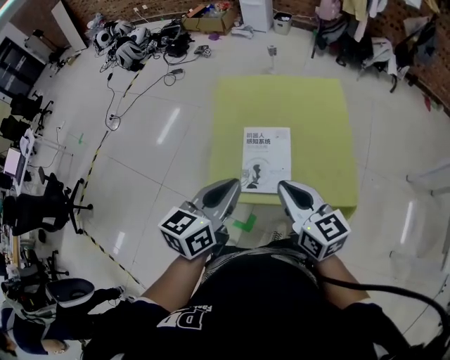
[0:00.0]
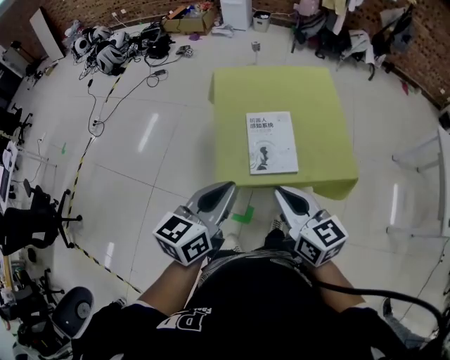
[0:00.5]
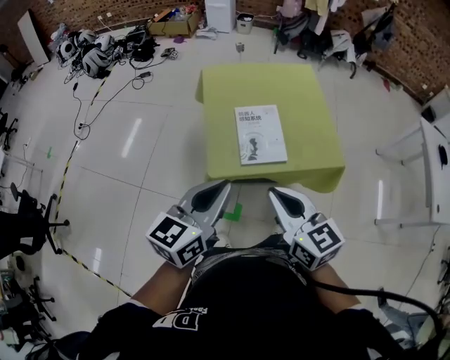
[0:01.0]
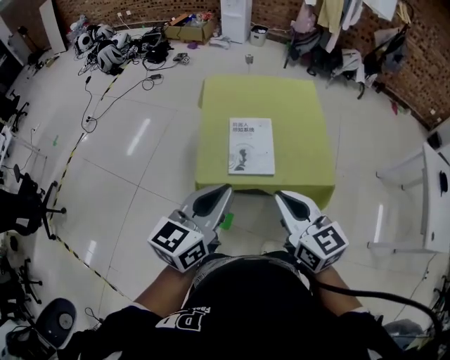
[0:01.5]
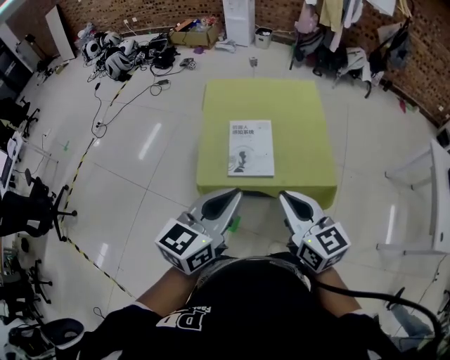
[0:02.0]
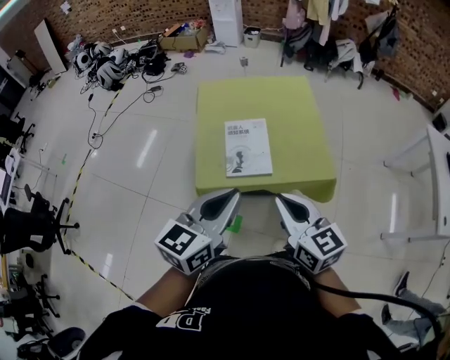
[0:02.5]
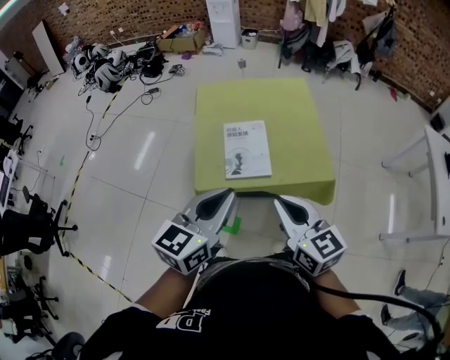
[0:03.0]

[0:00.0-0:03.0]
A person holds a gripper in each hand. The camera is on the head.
0:00.0 to 0:01.5: The right gripper heads backward, covering roughly 15 cm, while the left gripper moves backward and upward, about 15 cm.
0:01.5 to 0:03.0: The grippers move only a little.

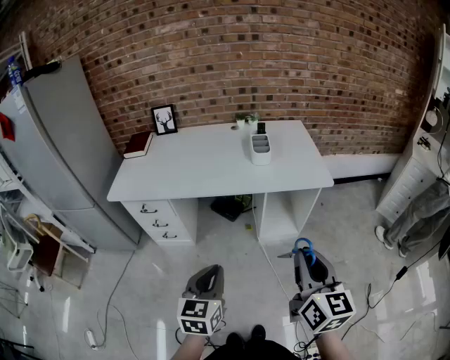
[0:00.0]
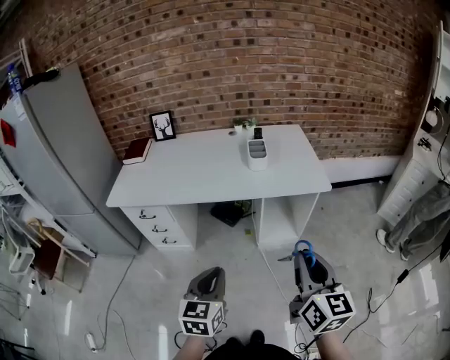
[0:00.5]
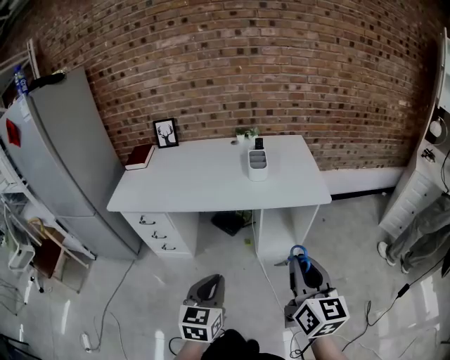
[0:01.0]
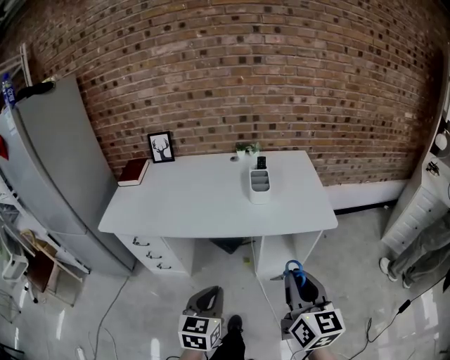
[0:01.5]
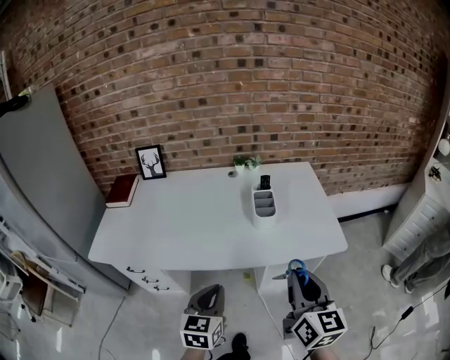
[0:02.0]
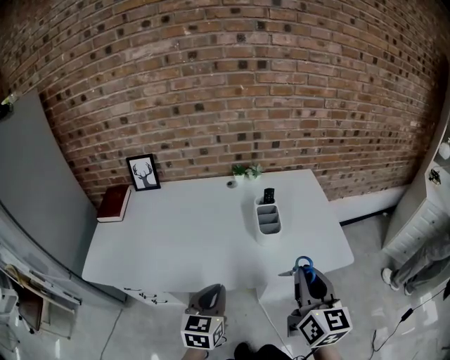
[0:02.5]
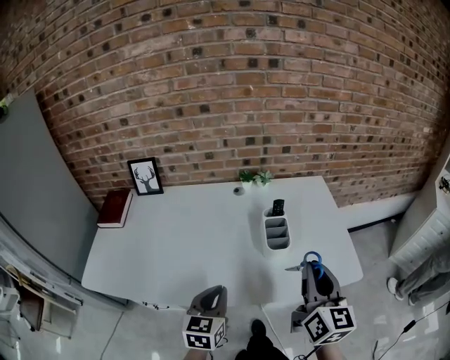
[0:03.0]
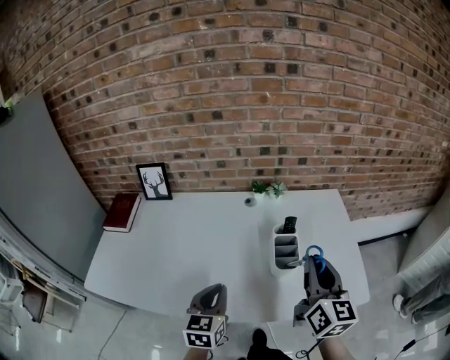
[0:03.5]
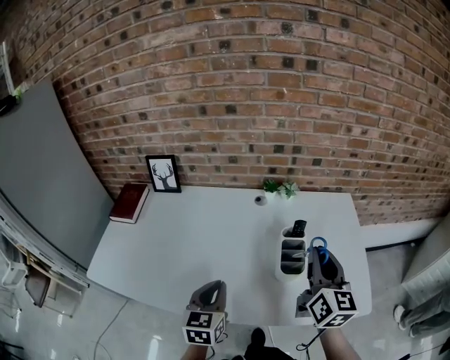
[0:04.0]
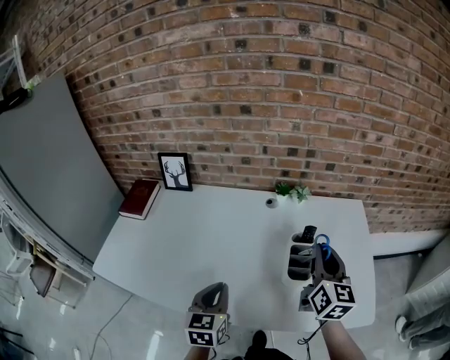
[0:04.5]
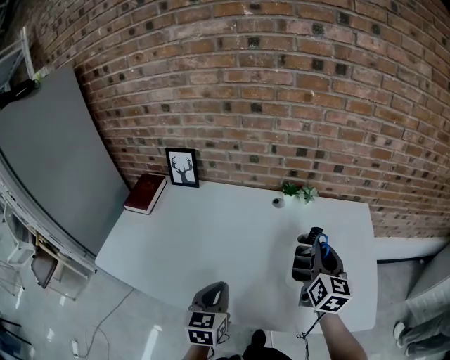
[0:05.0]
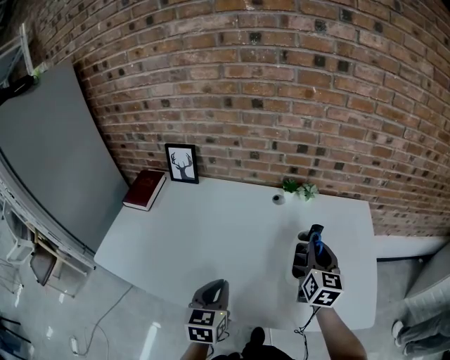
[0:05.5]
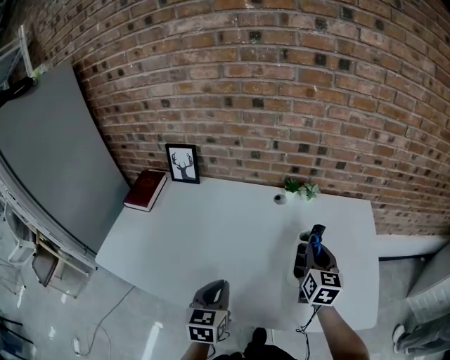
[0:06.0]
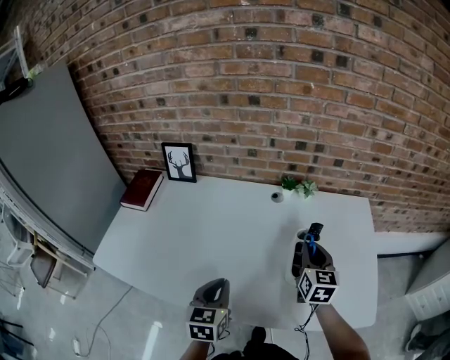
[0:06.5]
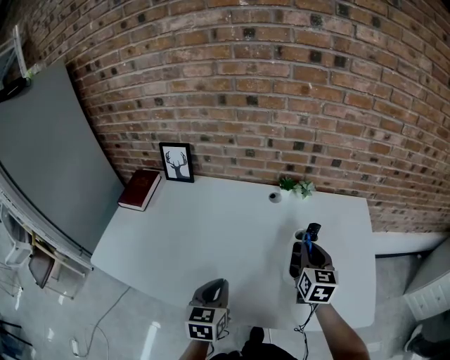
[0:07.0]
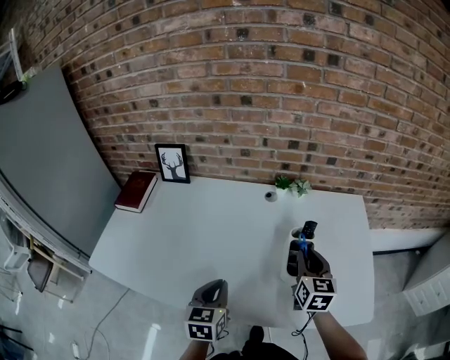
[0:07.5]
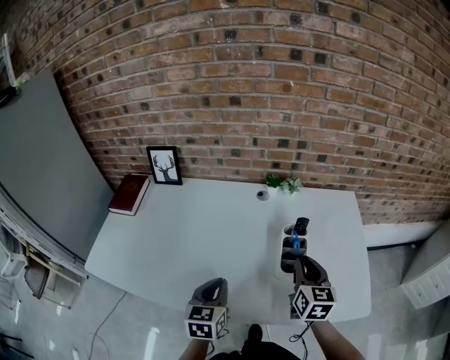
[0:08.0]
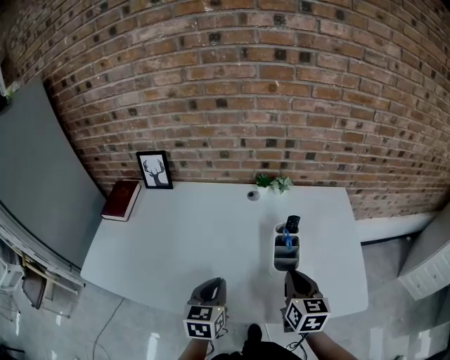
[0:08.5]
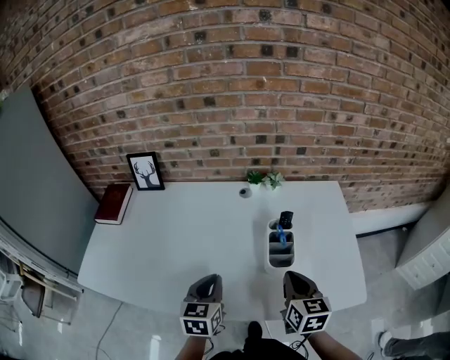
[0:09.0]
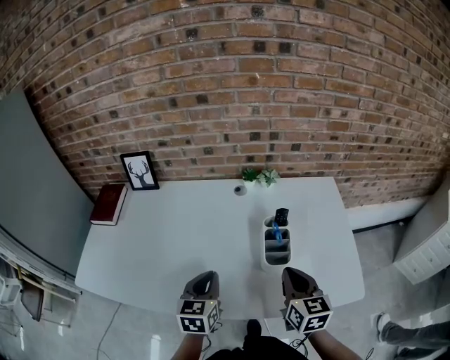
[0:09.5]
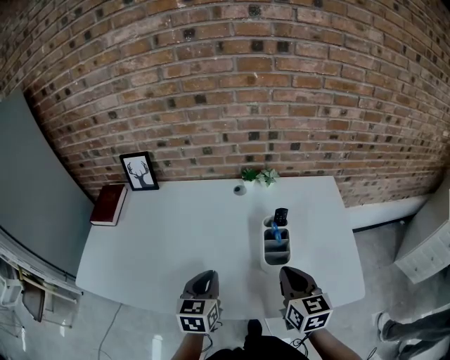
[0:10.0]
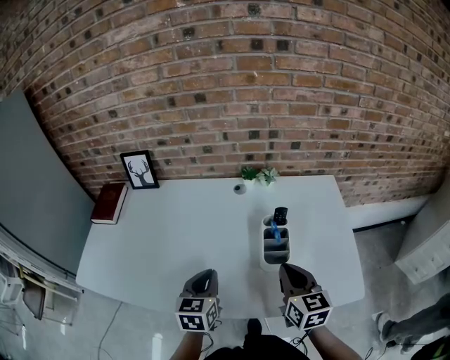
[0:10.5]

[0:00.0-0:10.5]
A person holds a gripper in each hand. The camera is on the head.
0:00.0 to 0:02.0: Both grippers travel together forward, about 25 cm.
0:02.0 to 0:04.0: The grippers both shift forward by approximately 30 cm.
0:04.0 to 0:06.5: The right gripper moves downward and forward, roughly 15 cm.
0:06.5 to 0:08.5: The right gripper travels backward by roughly 10 cm.
0:08.5 to 0:10.5: The grippers make only small movements.

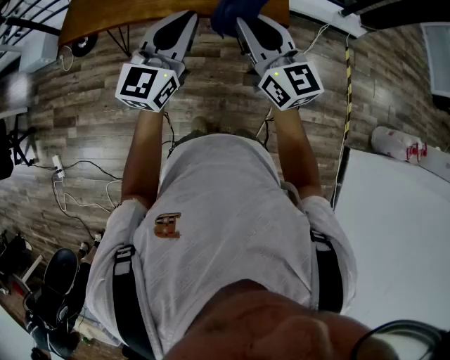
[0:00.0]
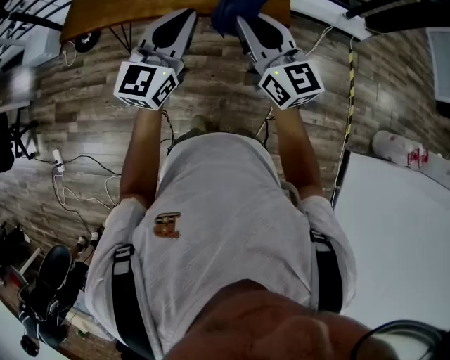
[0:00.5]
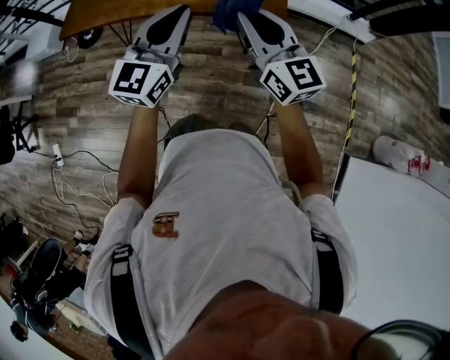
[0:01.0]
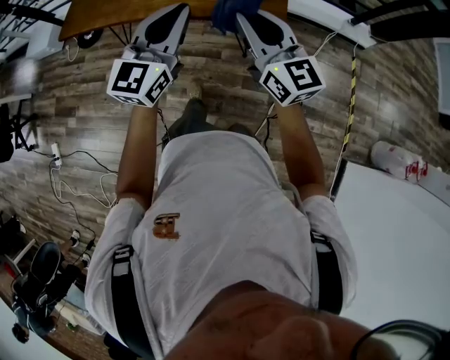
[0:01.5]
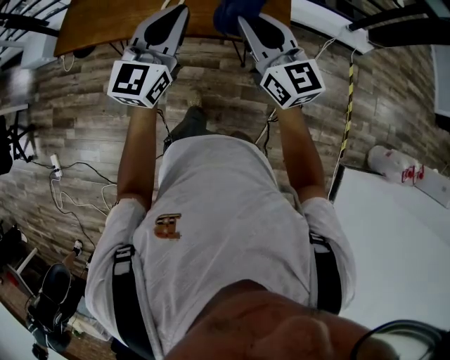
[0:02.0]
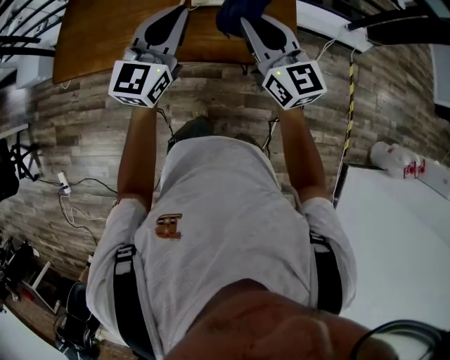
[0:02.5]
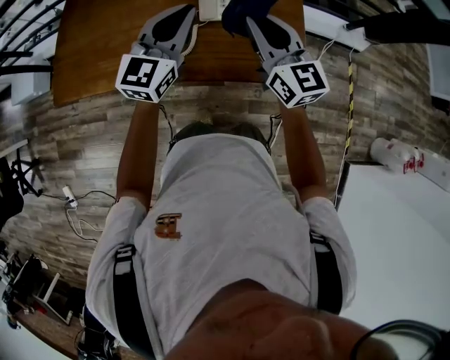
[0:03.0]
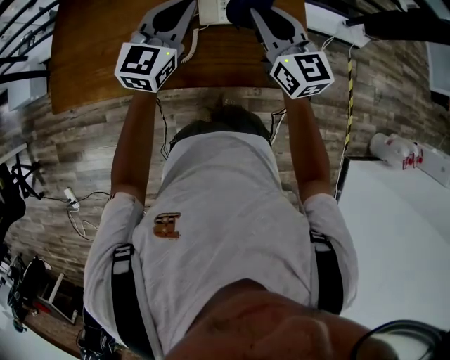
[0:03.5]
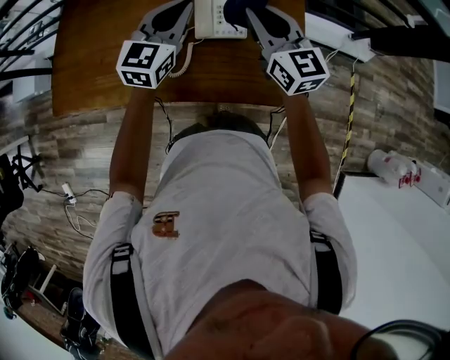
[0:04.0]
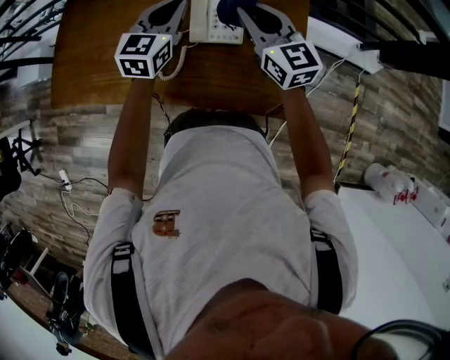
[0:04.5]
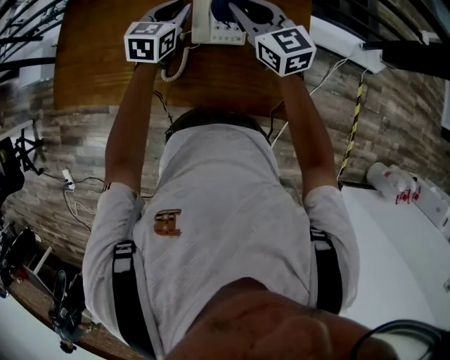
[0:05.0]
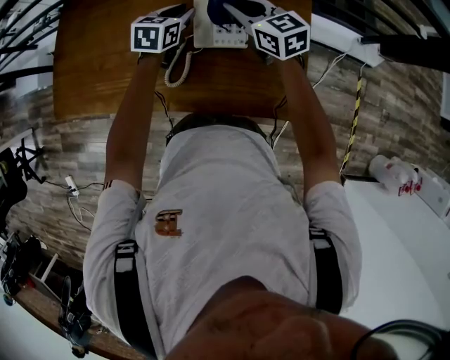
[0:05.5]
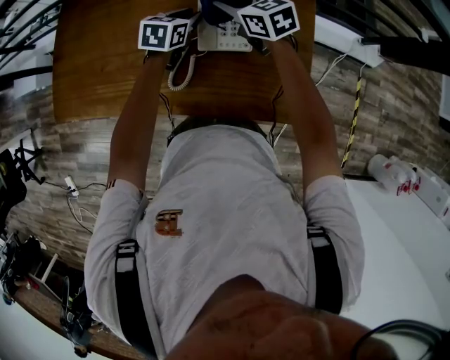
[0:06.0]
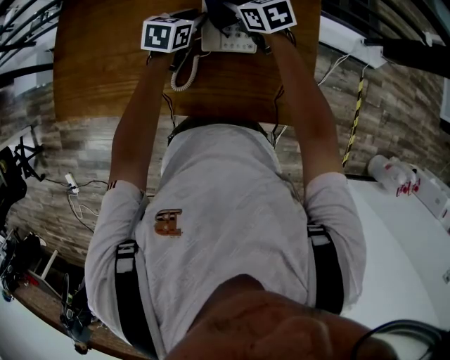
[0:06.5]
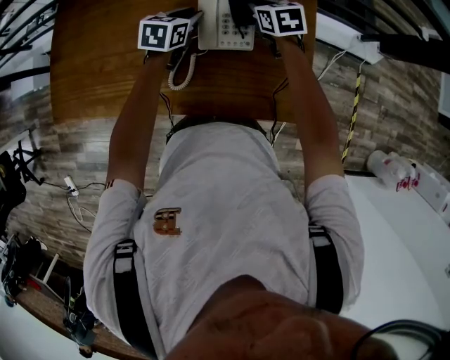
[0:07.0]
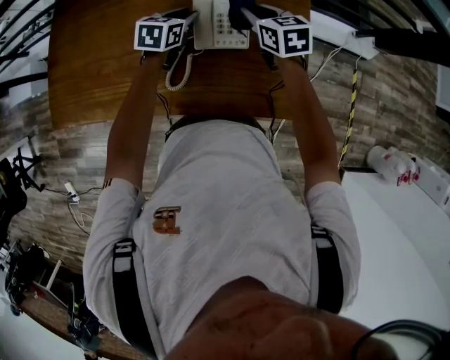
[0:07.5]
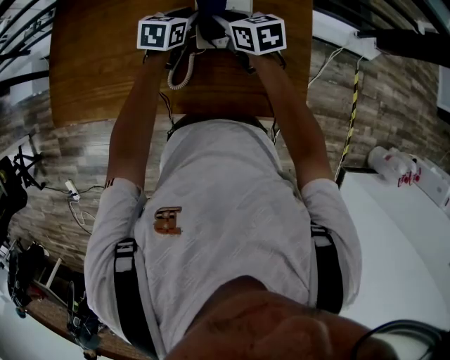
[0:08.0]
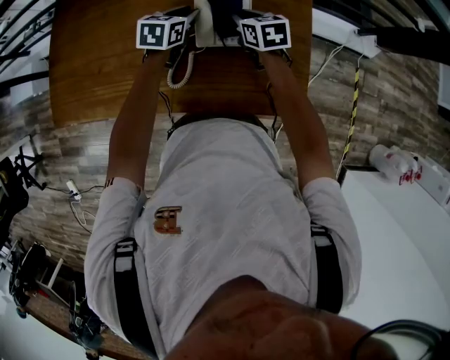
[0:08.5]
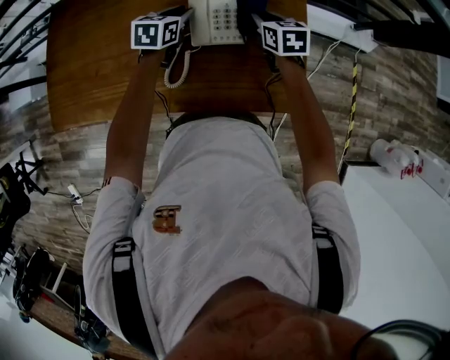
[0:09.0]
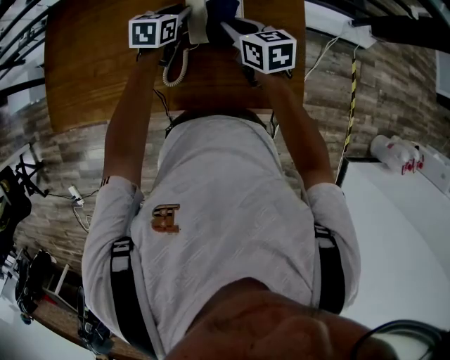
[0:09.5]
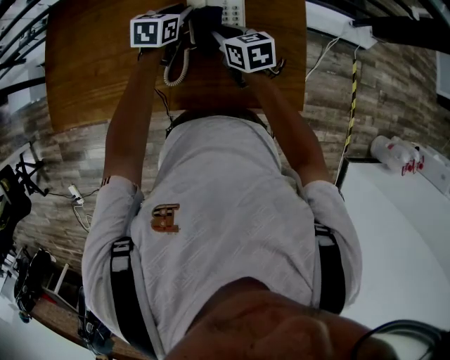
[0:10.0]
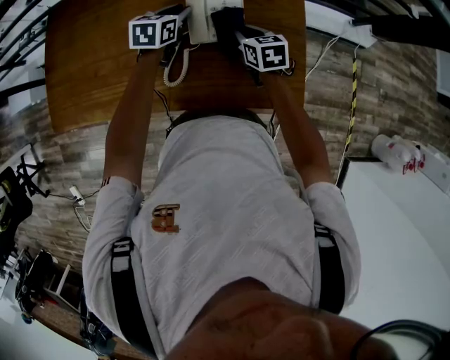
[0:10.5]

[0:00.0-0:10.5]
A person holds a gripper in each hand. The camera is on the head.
0:00.0 to 0:02.0: The two grippers go about 15 cm forward.
0:02.0 to 0:04.0: The grippers both shift forward by some 35 cm.
0:04.0 to 0:06.5: The right gripper goes about 25 cm forward and downward, and angles its fingers downward, by some 30 degrees; the left gripper shifts about 20 cm downward and forward, and tilts its fingers approximately 30 degrees downward.
0:06.5 to 0:08.5: The right gripper goes left and right, roughly 10 cm each way, reversing 2 times.
0:08.5 to 0:10.5: The right gripper swings left and right, roughly 10 cm each way, with 2 reversals.

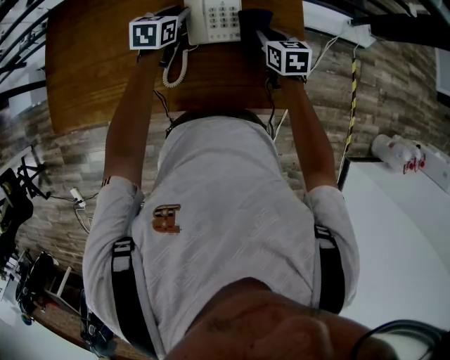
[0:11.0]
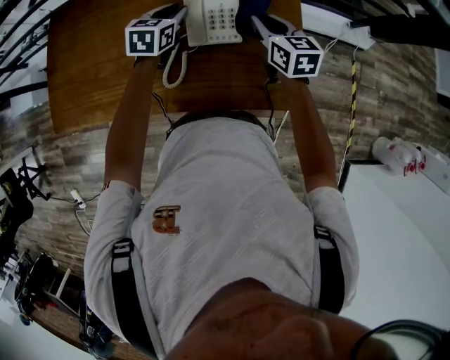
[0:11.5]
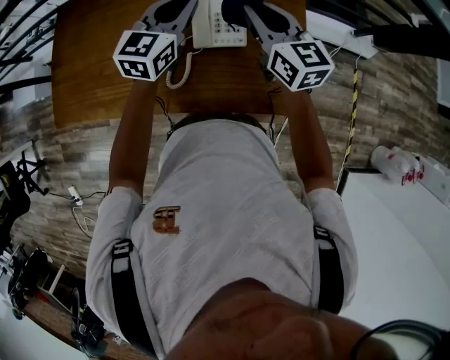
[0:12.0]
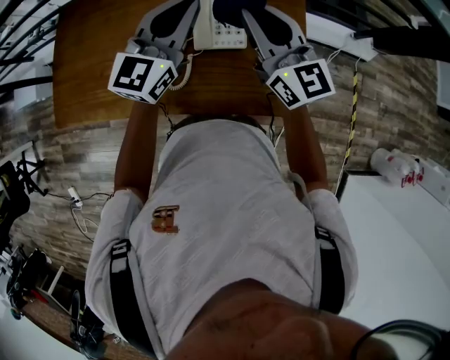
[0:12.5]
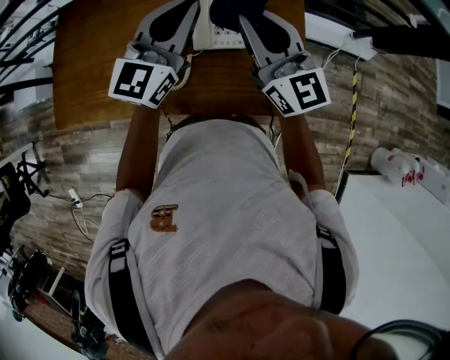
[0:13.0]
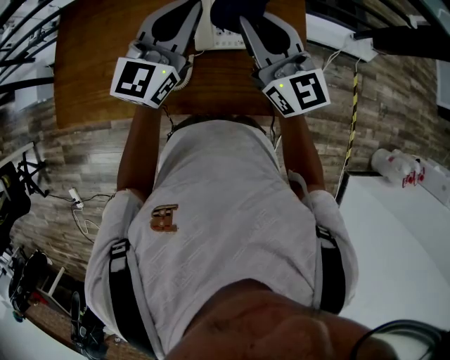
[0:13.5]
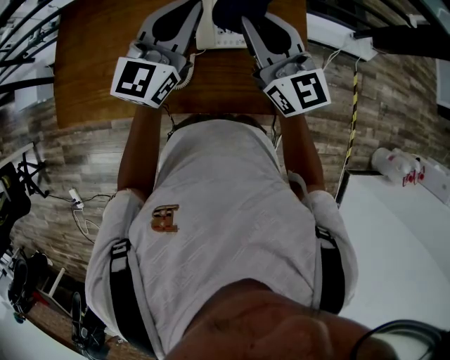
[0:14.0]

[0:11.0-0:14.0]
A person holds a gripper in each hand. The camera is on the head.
0:11.0 to 0:12.5: Both grippers move upward, about 25 cm. The right gripper tips its fingers upward by some 50 degrees; the left gripper tips its fingers upward by about 40 degrees.
0:12.5 to 0:14.0: The grippers stay close to where they were, moving slightly.
